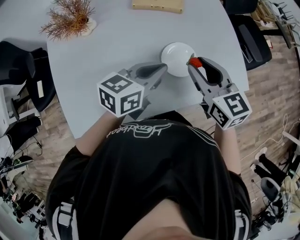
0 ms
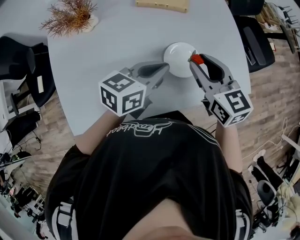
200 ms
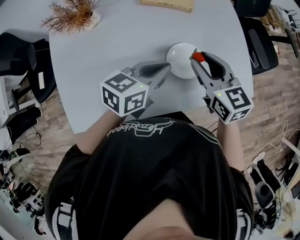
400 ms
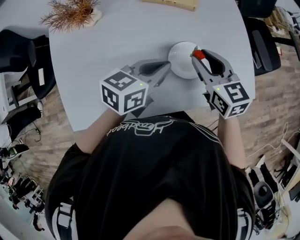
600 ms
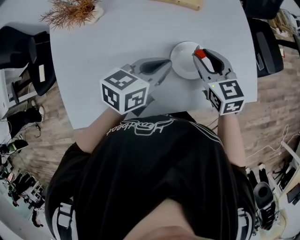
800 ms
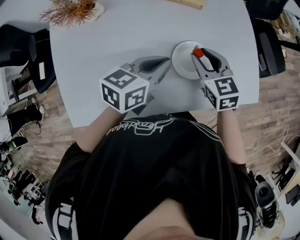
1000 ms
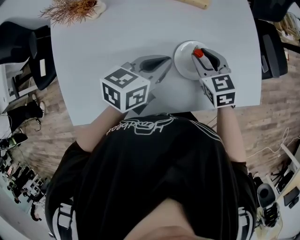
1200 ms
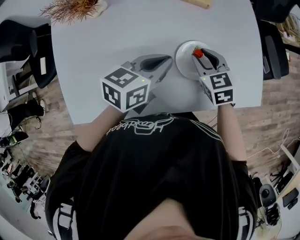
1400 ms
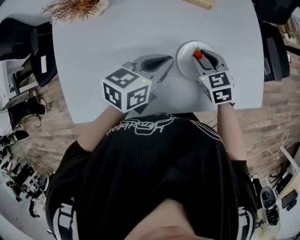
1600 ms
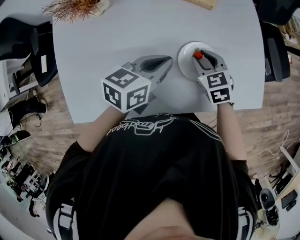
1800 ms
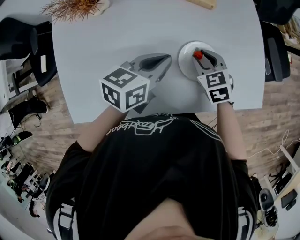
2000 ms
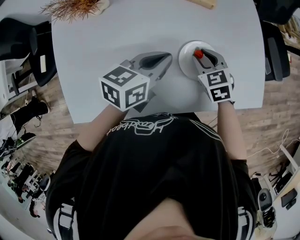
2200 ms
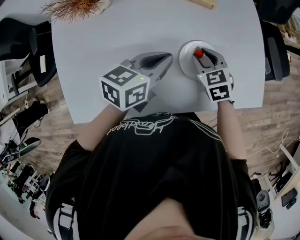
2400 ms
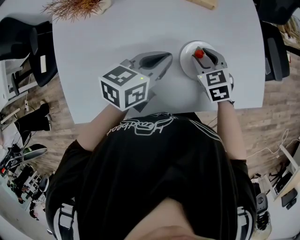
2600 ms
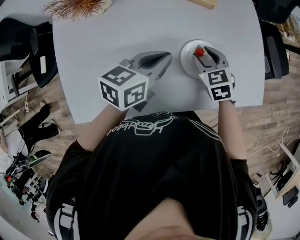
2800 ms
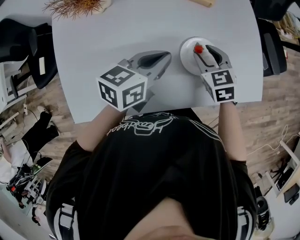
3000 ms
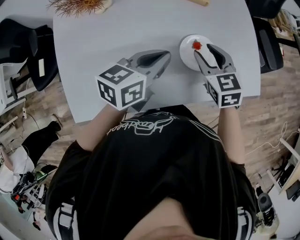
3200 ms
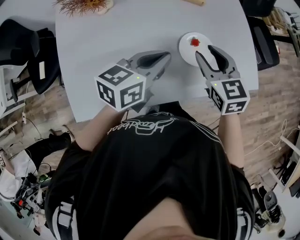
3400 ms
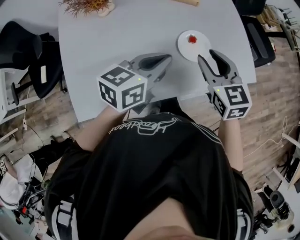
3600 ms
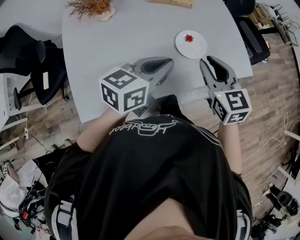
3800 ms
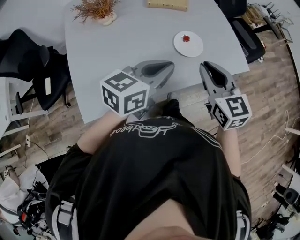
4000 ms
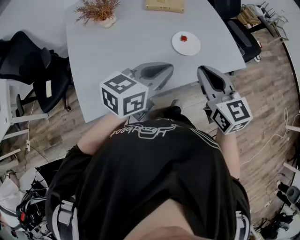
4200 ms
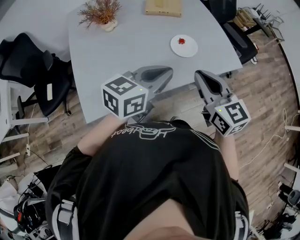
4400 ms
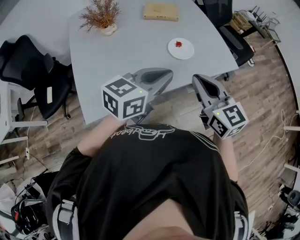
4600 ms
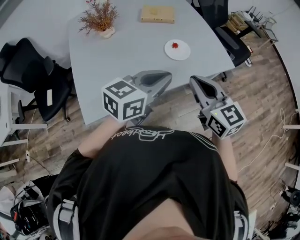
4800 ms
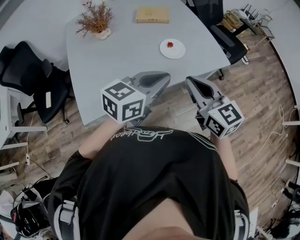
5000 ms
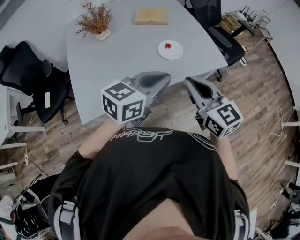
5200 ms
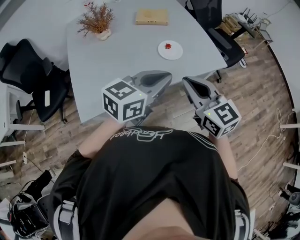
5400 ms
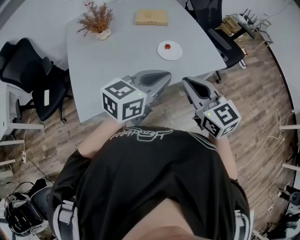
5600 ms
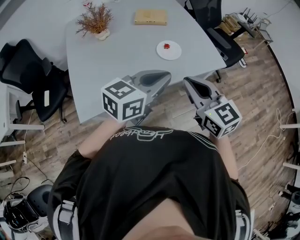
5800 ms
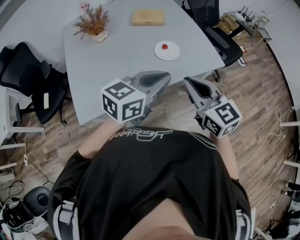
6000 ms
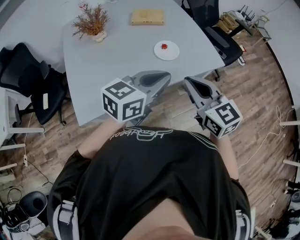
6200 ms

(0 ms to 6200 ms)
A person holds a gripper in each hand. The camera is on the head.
0 ms - 1600 ms: The right gripper is displaced downward by approximately 15 cm, and changes its angle by some 30 degrees. Meanwhile the left gripper travels downward by approximately 5 cm.
1600 ms - 3200 ms: The right gripper shifts roughly 10 cm upward, while the left gripper moves approximately 5 cm.
3200 ms - 4600 ms: Both grippers move backward and upward, roughly 30 cm. The left gripper turns by about 20 degrees, while the right gripper turns by roughly 30 degrees, and closes its fingers.
4600 ms - 6200 ms: The right gripper ends up approximately 5 cm from where it was; the left gripper heads to the right, covering approximately 5 cm.

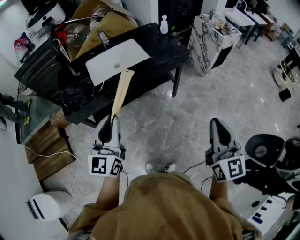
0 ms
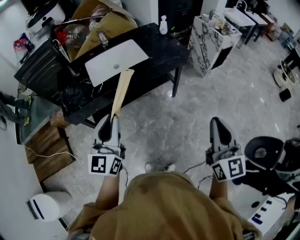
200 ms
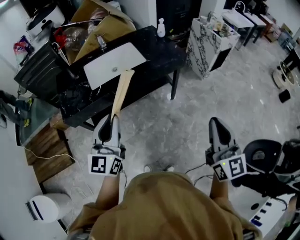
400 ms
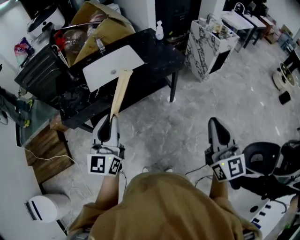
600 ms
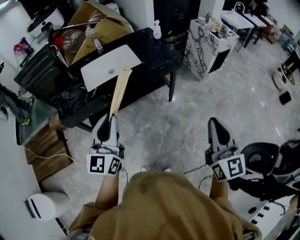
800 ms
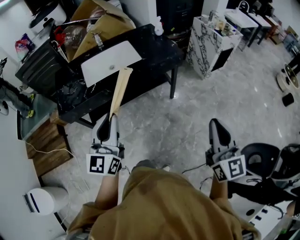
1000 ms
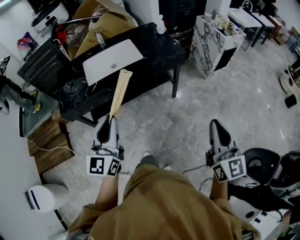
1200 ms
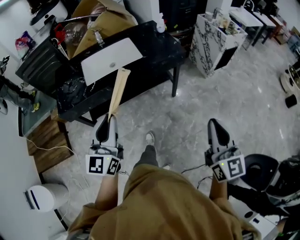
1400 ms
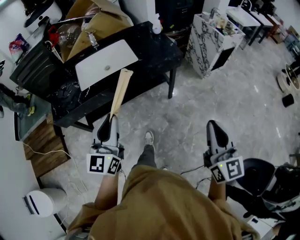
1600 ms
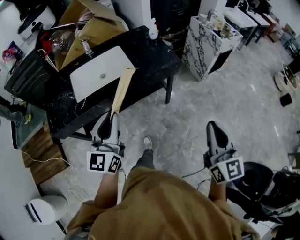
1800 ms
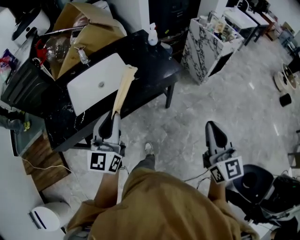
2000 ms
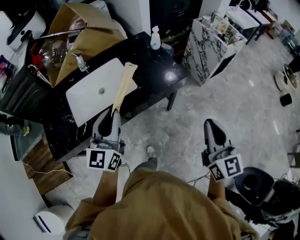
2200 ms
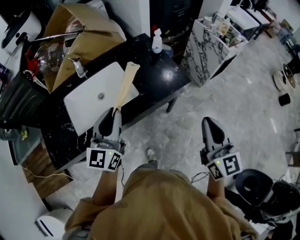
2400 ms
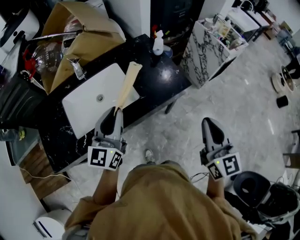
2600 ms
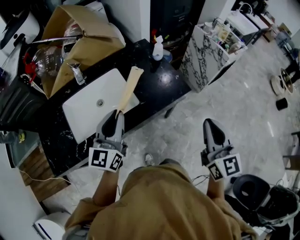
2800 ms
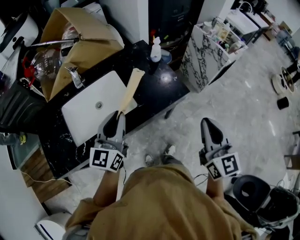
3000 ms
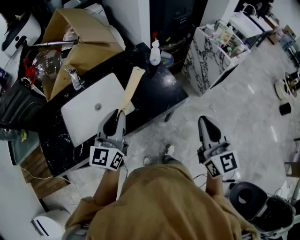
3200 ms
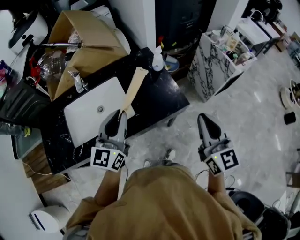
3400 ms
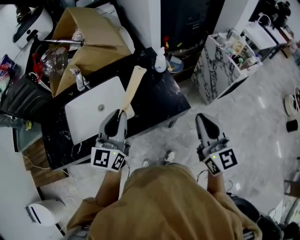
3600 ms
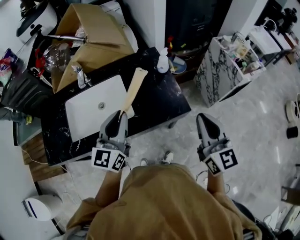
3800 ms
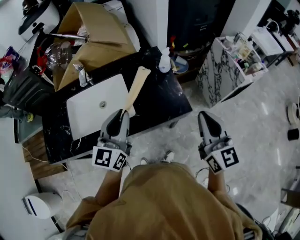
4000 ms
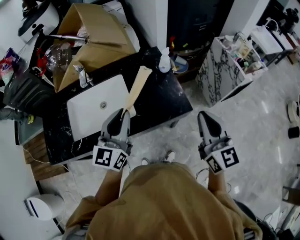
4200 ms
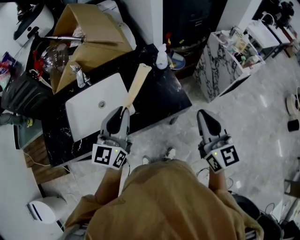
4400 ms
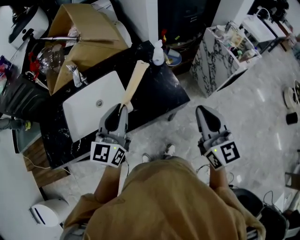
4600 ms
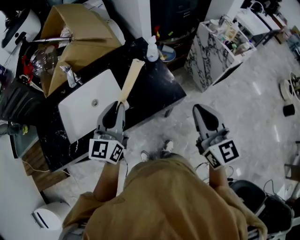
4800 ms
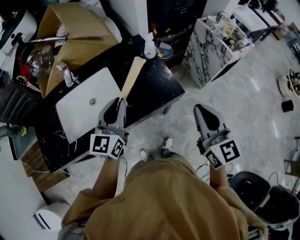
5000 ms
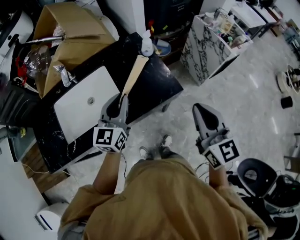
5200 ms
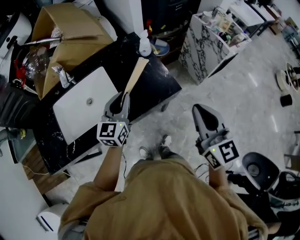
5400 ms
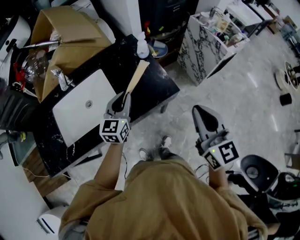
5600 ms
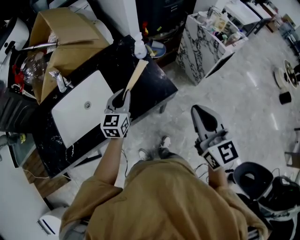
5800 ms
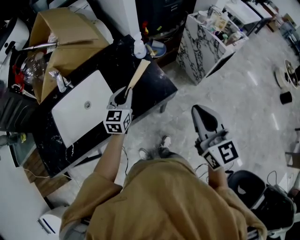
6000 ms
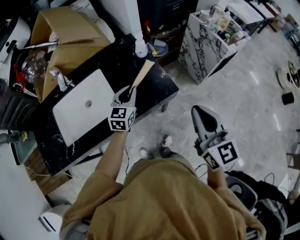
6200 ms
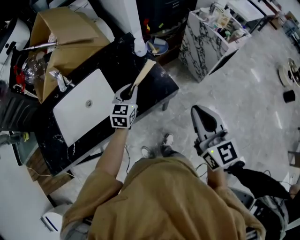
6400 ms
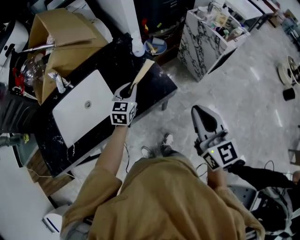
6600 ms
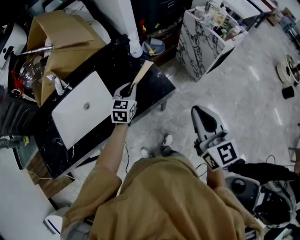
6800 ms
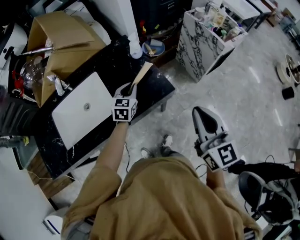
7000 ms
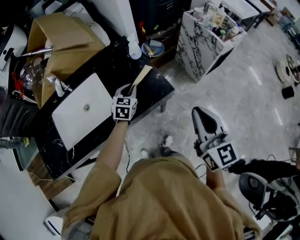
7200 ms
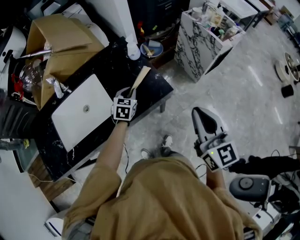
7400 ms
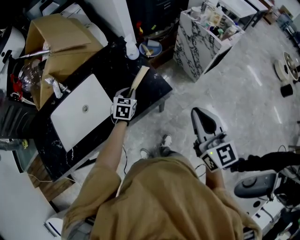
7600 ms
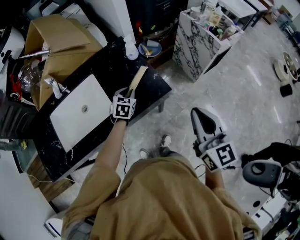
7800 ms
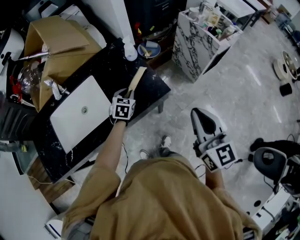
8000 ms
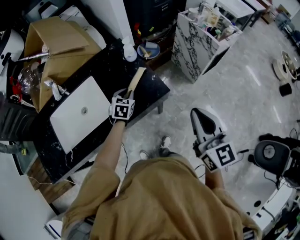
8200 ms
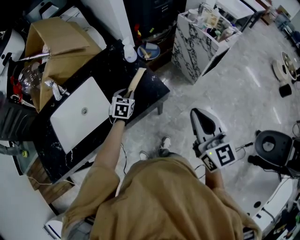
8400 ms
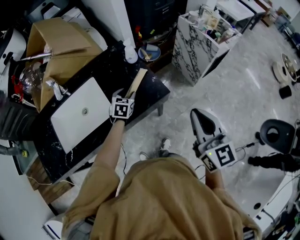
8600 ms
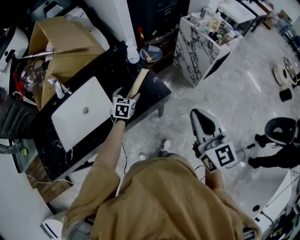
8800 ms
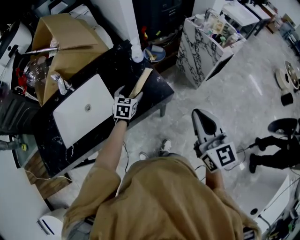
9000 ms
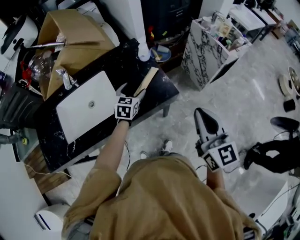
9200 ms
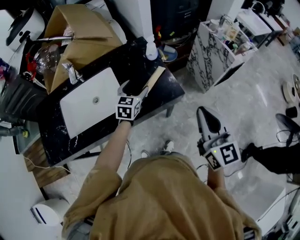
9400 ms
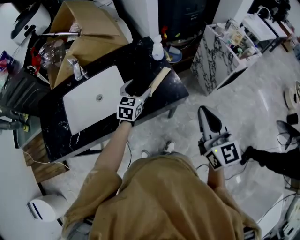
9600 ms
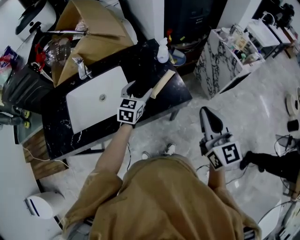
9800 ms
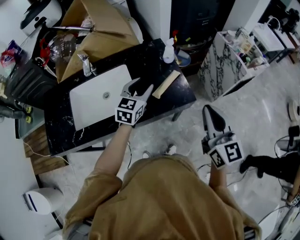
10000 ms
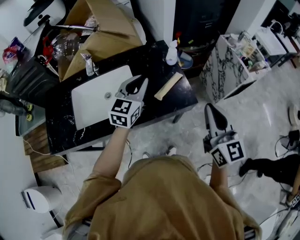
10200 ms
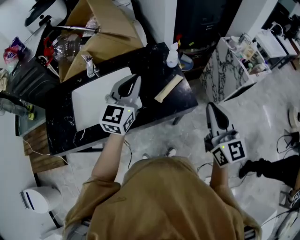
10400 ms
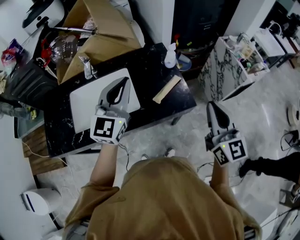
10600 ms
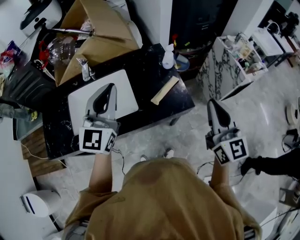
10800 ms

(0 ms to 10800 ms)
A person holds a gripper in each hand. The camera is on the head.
0 ms - 1600 ms: Both grippers move to the right and forward, about 15 cm.
1600 ms - 3000 ms: The grippers both shift forward by roughly 35 cm.
3000 ms - 4600 ms: The left gripper is displaced to the right by some 5 cm. The right gripper travels forward by some 10 cm.
4600 ms - 6200 ms: The left gripper heads downward, forward and to the right, covering some 20 cm, and turns by about 20 degrees.
6200 ms - 7800 ms: The left gripper travels downward by approximately 10 cm, and rotates some 20 degrees.
7800 ms - 9200 ms: The left gripper is displaced upward by about 5 cm, and opens up.
9200 ms - 10800 ms: The right gripper goes about 10 cm forward. Meanwhile the left gripper shifts approximately 30 cm upward and to the left, points its fingers about 40 degrees further upward, and closes its fingers.

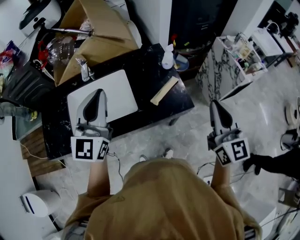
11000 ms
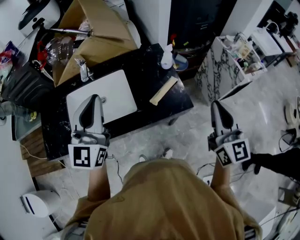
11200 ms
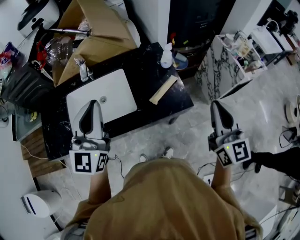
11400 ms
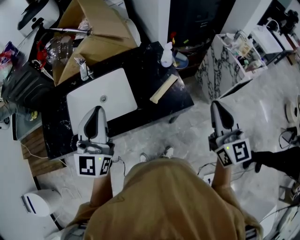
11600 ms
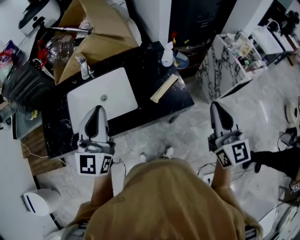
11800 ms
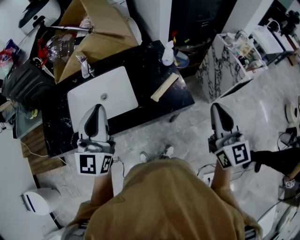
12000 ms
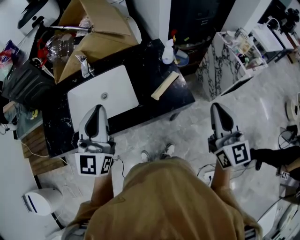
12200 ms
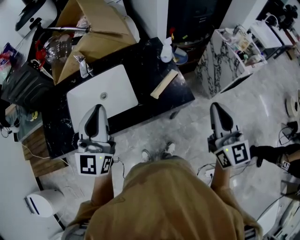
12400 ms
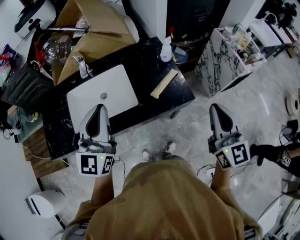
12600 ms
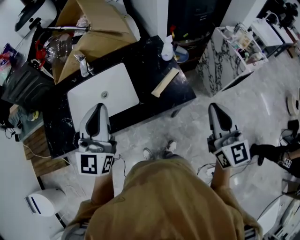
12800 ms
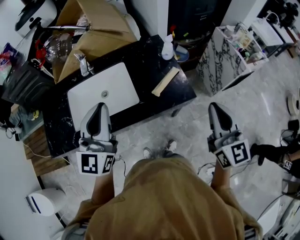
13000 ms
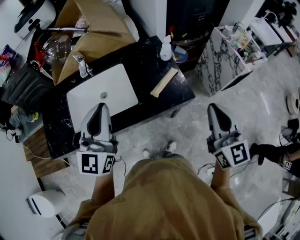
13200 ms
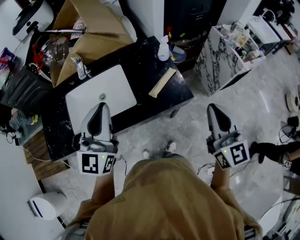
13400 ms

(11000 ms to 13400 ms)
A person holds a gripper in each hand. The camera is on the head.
11000 ms - 12200 ms: The left gripper goes about 5 cm backward.
12200 ms - 13400 ms: There are only small adjustments of the grippers.

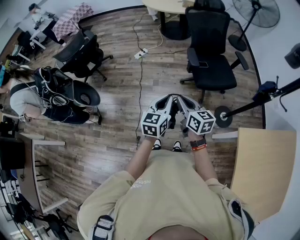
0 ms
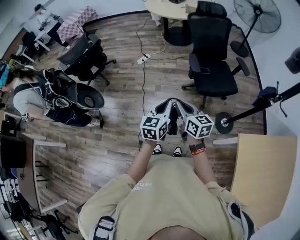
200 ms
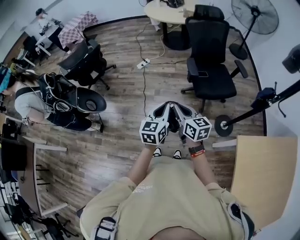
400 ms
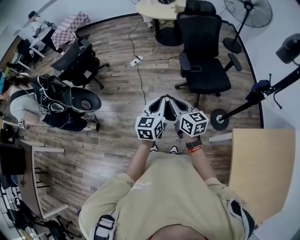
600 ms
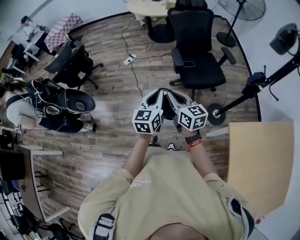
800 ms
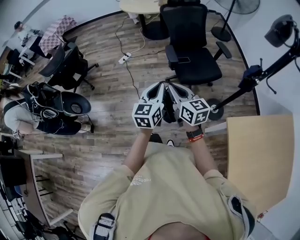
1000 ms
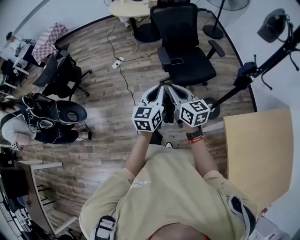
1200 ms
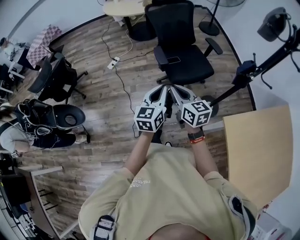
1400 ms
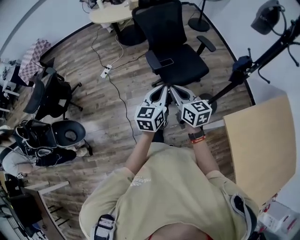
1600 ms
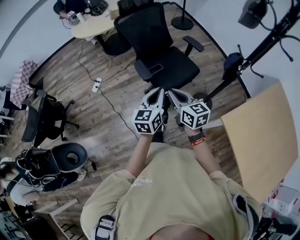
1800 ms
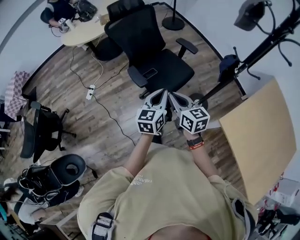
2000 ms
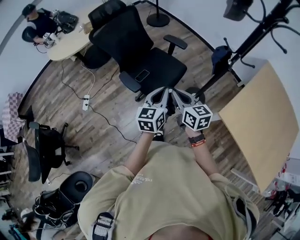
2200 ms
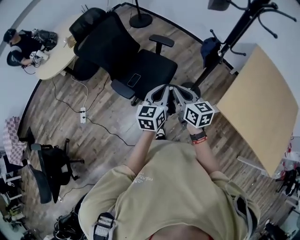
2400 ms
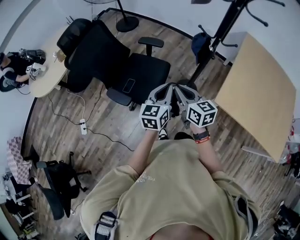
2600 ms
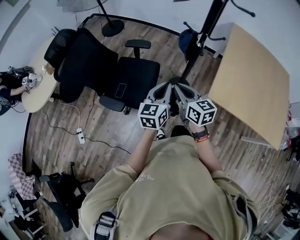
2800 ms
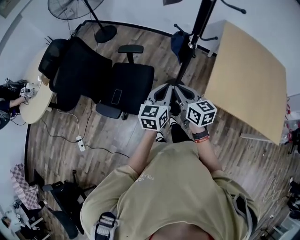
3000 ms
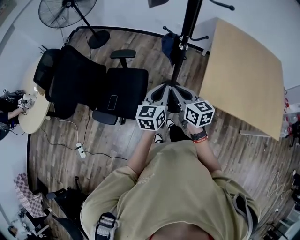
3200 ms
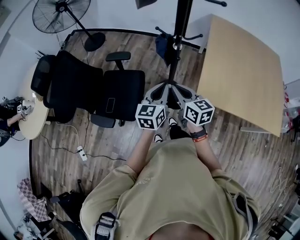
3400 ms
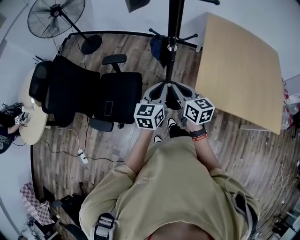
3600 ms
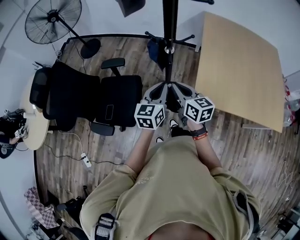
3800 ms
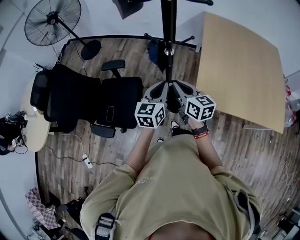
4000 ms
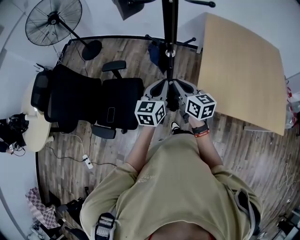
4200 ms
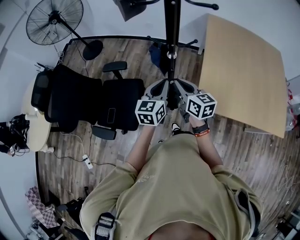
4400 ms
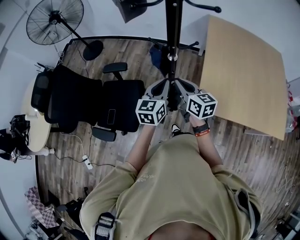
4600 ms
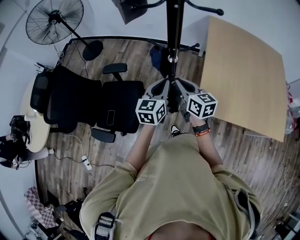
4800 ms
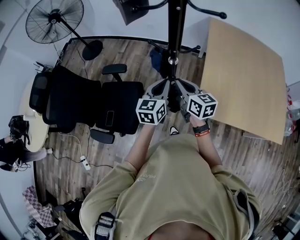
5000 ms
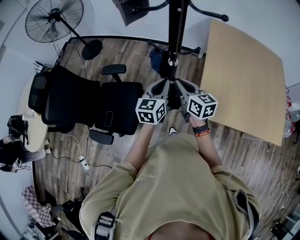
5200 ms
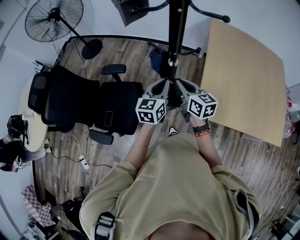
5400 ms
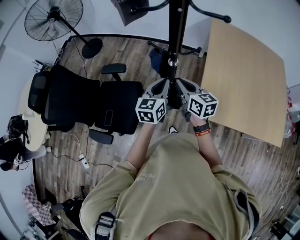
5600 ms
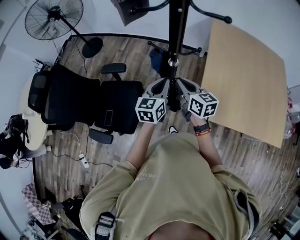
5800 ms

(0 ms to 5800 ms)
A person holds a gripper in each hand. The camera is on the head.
0 ms - 1400 ms: The two grippers go roughly 15 cm to the right.
1400 ms - 2800 ms: The right gripper ends up approximately 30 cm from where it was, and turns by some 50 degrees. The left gripper moves roughly 30 cm, and rotates some 50 degrees.
2800 ms - 4400 ms: The right gripper heads to the right and forward, covering roughly 25 cm. Meanwhile the left gripper moves forward and to the right, roughly 20 cm.
4400 ms - 5800 ms: Both grippers move forward, about 10 cm.
